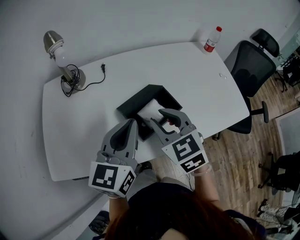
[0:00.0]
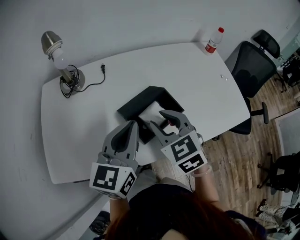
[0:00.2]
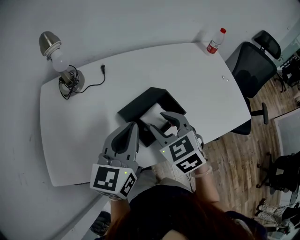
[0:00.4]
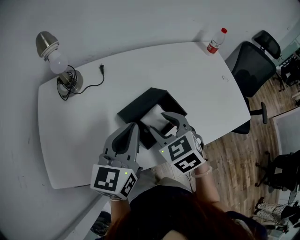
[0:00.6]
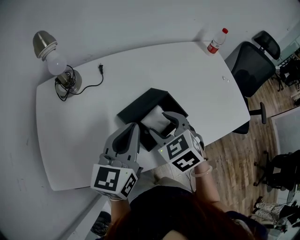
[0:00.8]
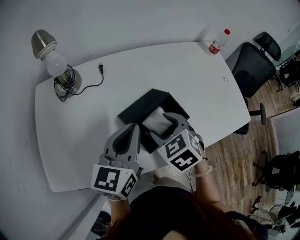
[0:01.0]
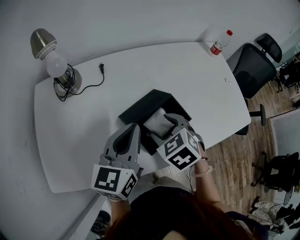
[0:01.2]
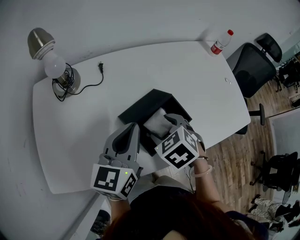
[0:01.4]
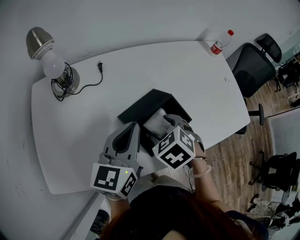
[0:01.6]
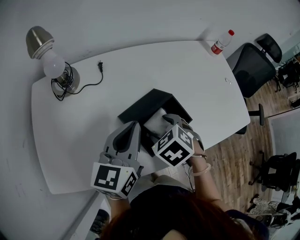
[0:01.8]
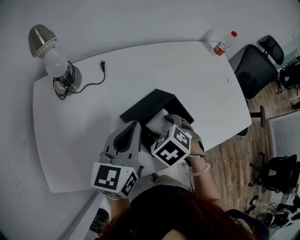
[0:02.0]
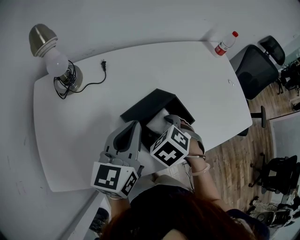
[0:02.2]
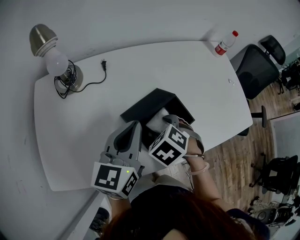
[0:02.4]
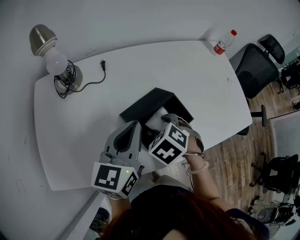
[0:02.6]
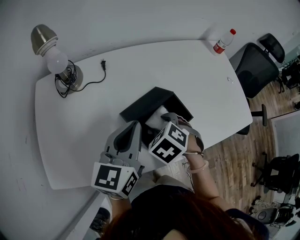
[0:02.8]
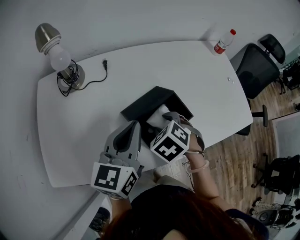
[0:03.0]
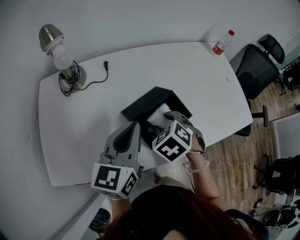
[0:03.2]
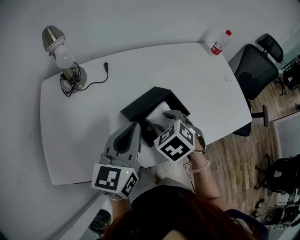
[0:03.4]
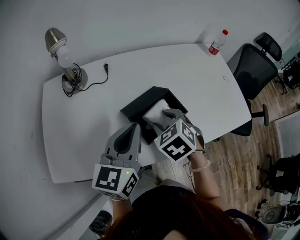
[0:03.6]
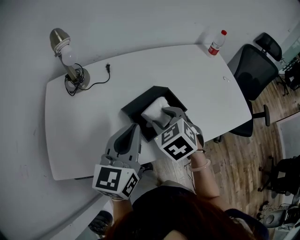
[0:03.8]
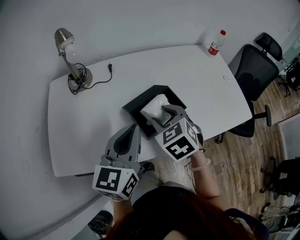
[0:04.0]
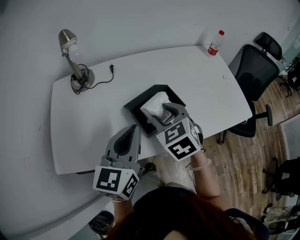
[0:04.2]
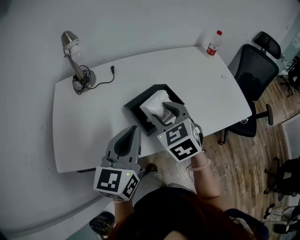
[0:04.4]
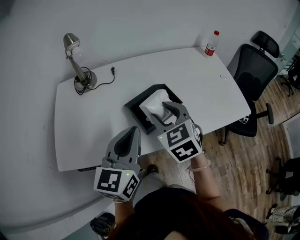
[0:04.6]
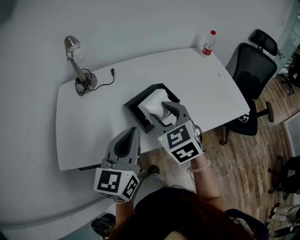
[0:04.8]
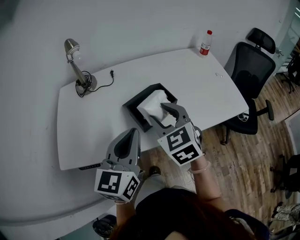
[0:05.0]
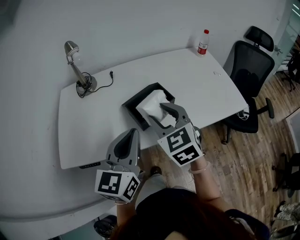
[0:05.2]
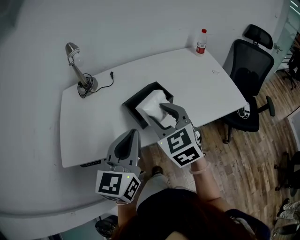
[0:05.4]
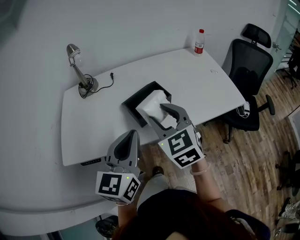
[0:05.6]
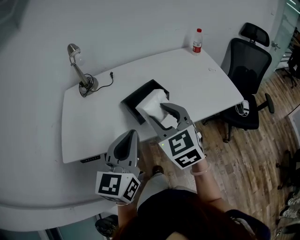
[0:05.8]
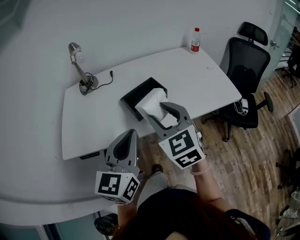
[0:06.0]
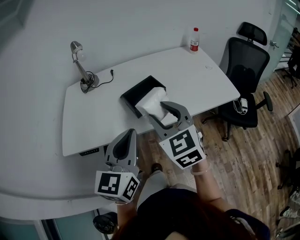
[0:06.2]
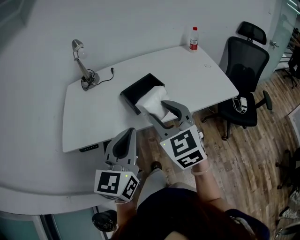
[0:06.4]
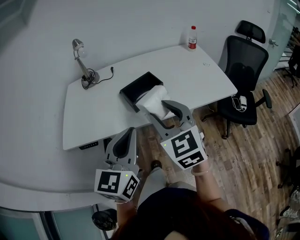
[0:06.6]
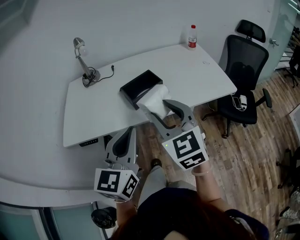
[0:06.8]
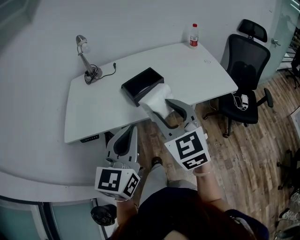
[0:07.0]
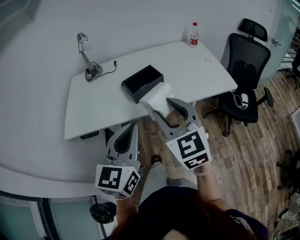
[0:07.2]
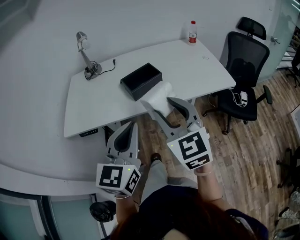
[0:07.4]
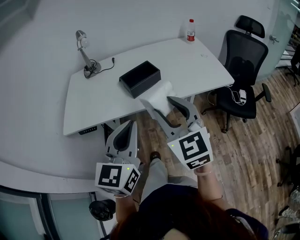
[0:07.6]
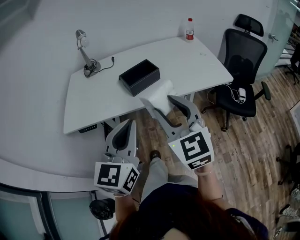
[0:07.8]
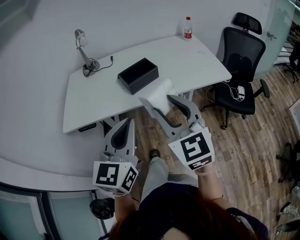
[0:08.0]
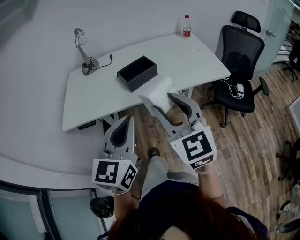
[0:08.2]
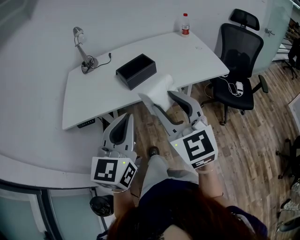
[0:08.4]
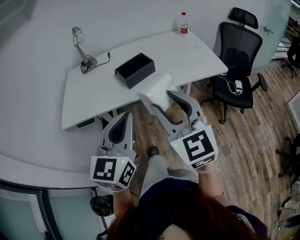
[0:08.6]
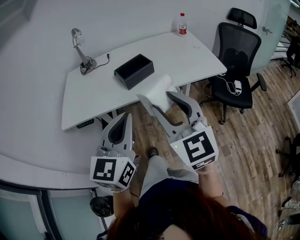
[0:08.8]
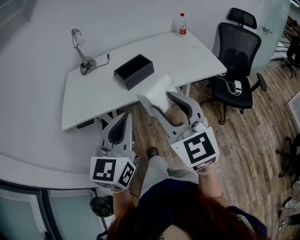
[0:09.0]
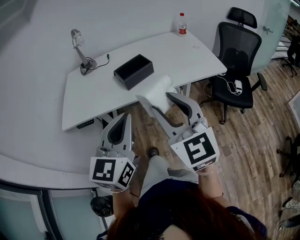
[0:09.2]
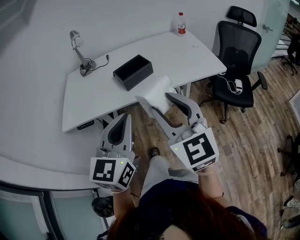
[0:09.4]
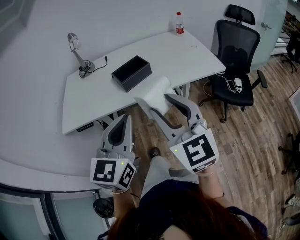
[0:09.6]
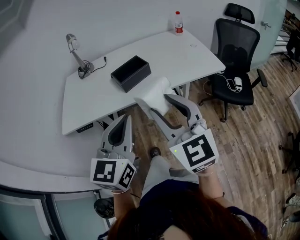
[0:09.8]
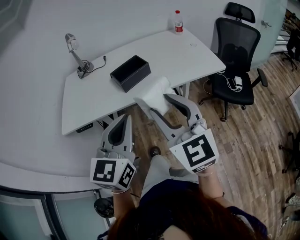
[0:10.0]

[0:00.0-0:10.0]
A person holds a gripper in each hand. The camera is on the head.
0:00.0 to 0:01.4: The right gripper moves some 25 cm downward and comes back, tips its fingers downward by some 30 degrees, and opens. Meanwhile the left gripper shifts roughly 5 cm forward, and goes downward and returns, some 25 cm each way.
0:01.4 to 0:02.8: The grippers stay close to where they were, moving slightly.
0:02.8 to 0:04.2: The right gripper shifts some 10 cm upward, and swivels approximately 30 degrees. Meanwhile the left gripper goes roughly 10 cm backward.
0:04.2 to 0:05.8: The right gripper heads backward and upward, covering roughly 15 cm, and rotates approximately 20 degrees. The left gripper heads backward, covering about 15 cm.
0:05.8 to 0:07.2: The grippers both shift backward by some 10 cm.
0:07.2 to 0:08.6: The right gripper goes some 10 cm backward, while the left gripper shifts some 5 cm backward.
0:08.6 to 0:10.0: The grippers make only small movements.

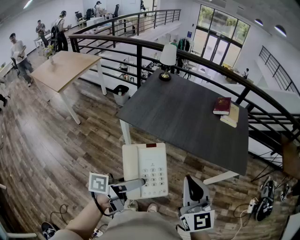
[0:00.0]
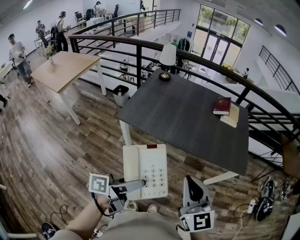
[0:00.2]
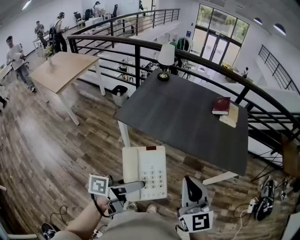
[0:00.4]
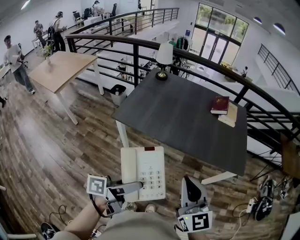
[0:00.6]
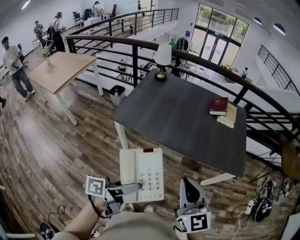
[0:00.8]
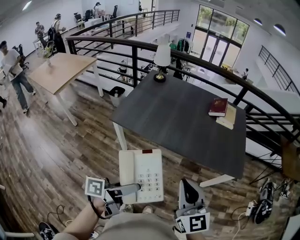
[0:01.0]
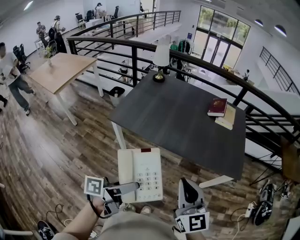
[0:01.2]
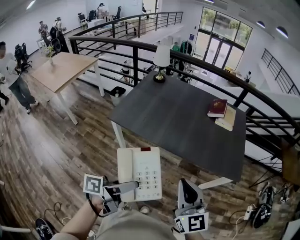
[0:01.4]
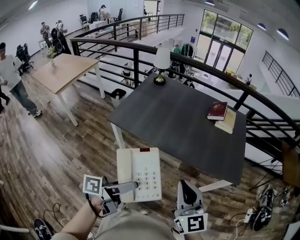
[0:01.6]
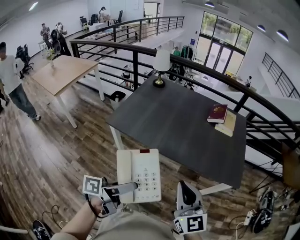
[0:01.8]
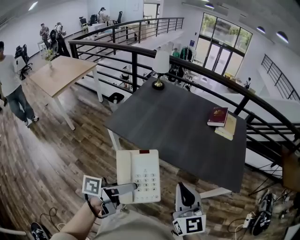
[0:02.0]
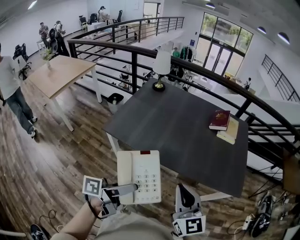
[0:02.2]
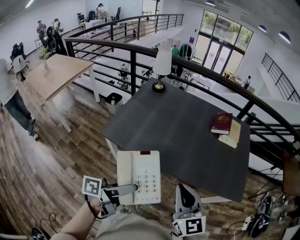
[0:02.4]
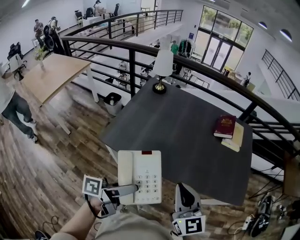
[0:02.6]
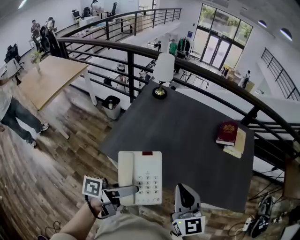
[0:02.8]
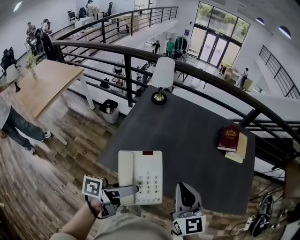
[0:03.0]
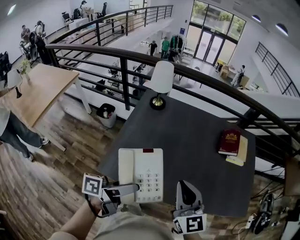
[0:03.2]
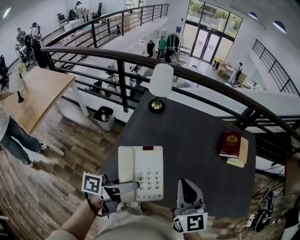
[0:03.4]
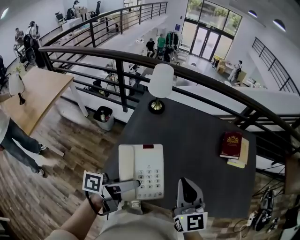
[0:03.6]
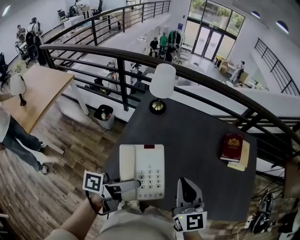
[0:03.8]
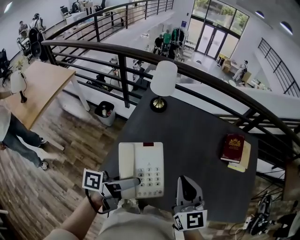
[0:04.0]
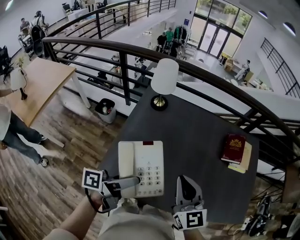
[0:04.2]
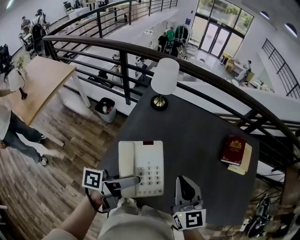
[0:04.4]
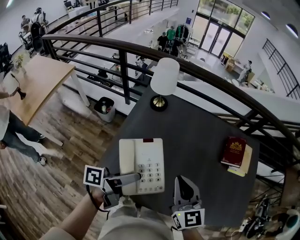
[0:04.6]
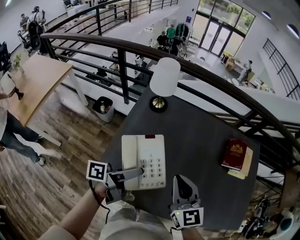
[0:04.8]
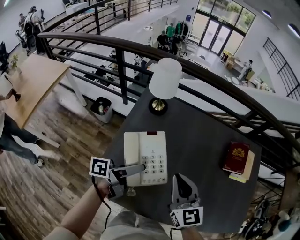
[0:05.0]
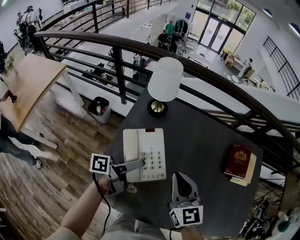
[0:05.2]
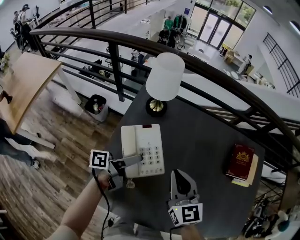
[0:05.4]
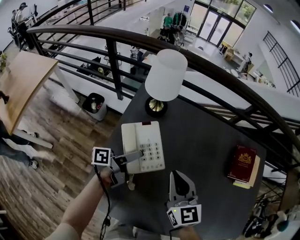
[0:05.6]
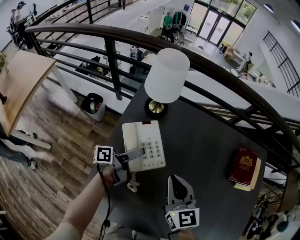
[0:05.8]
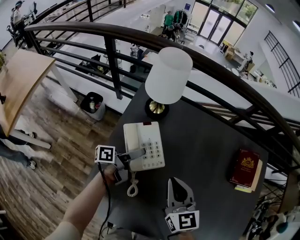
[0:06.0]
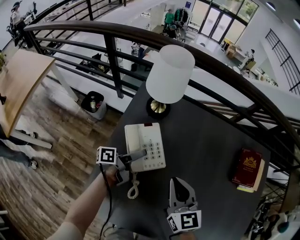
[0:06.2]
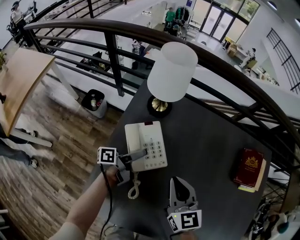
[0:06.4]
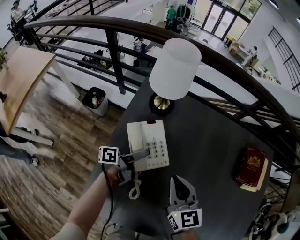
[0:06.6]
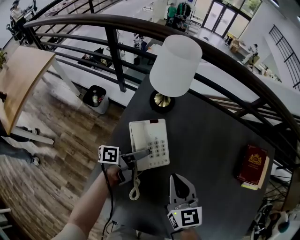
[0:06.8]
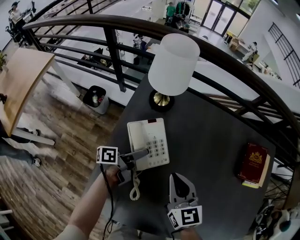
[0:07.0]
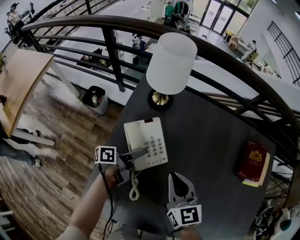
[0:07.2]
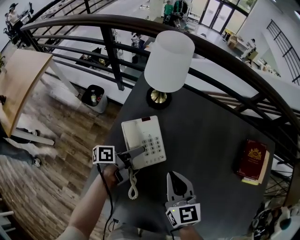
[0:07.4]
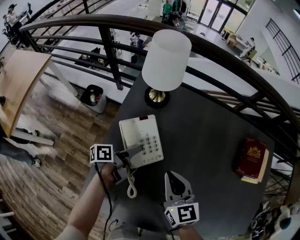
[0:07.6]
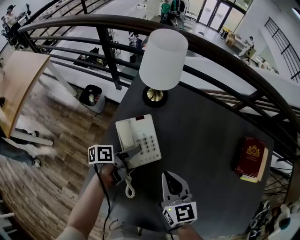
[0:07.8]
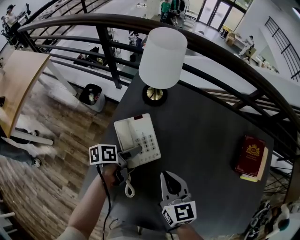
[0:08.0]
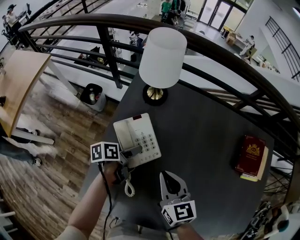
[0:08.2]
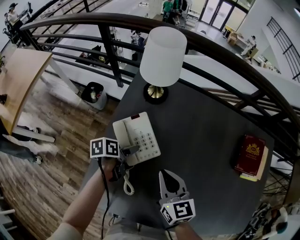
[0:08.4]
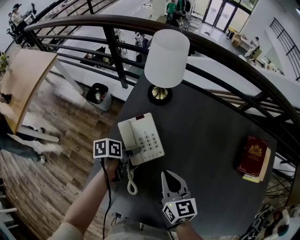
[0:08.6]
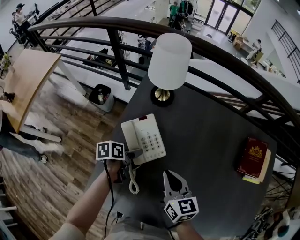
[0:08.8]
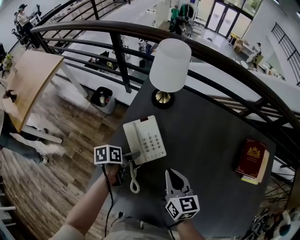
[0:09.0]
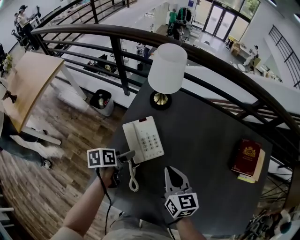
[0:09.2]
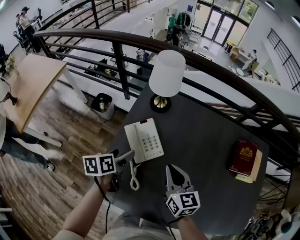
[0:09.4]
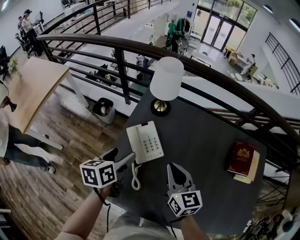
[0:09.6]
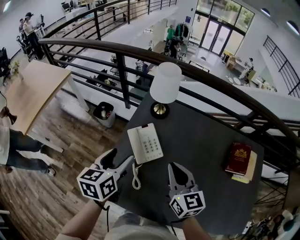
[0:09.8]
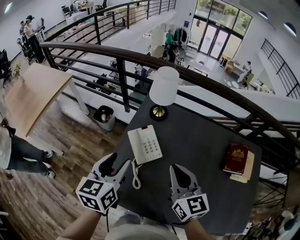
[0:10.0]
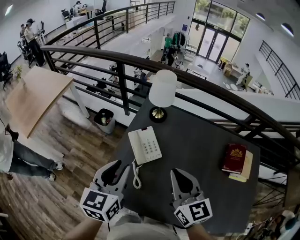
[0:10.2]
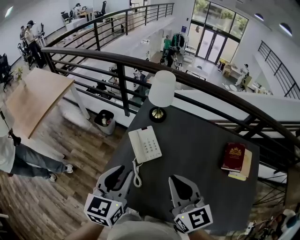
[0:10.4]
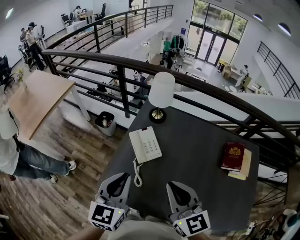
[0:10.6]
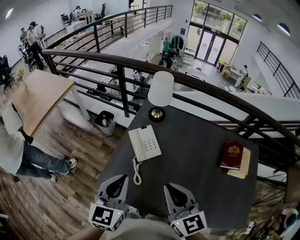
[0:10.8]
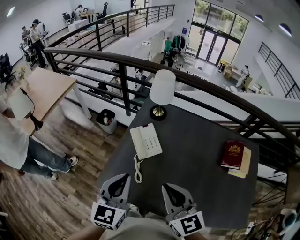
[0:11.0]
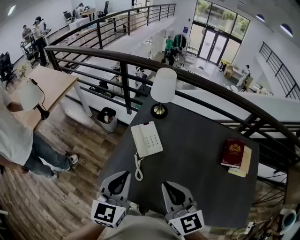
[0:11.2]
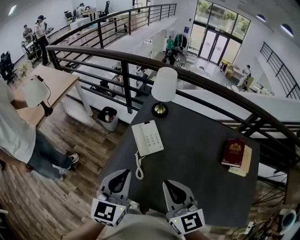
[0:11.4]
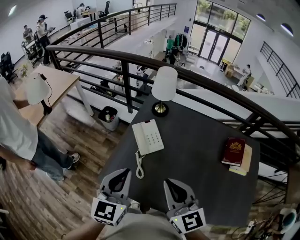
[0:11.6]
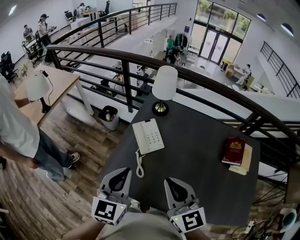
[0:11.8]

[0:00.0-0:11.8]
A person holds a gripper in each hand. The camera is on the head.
0:00.0 to 0:01.4: Both grippers travel together to the right, about 10 cm.
0:01.4 to 0:03.0: Both grippers move forward and to the left, some 35 cm.
0:03.0 to 0:04.4: The two grippers go approximately 15 cm forward and to the left.
0:04.4 to 0:06.0: The left gripper is displaced forward and downward by approximately 40 cm. The right gripper moves forward, downward and to the left, approximately 25 cm.
0:06.0 to 0:07.4: There are only small adjustments of the grippers.
0:07.4 to 0:08.8: The left gripper moves roughly 5 cm, and angles its fingers downward, by approximately 30 degrees.
0:08.8 to 0:10.4: The two grippers go roughly 35 cm upward and backward. The right gripper rotates some 30 degrees, while the left gripper tilts its fingers about 30 degrees upward, and closes up.
0:10.4 to 0:11.8: Both grippers move backward, some 5 cm.

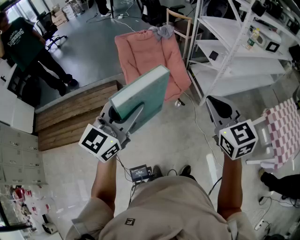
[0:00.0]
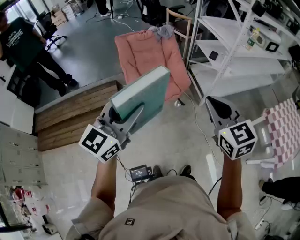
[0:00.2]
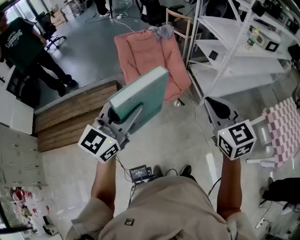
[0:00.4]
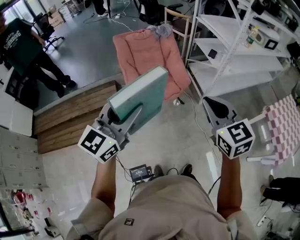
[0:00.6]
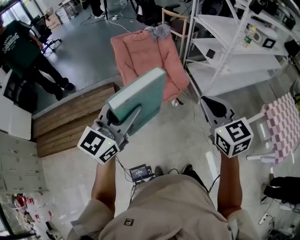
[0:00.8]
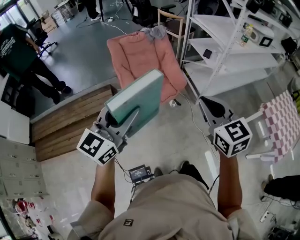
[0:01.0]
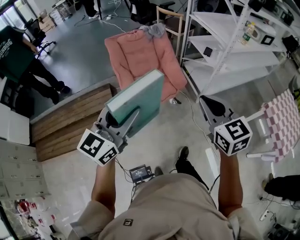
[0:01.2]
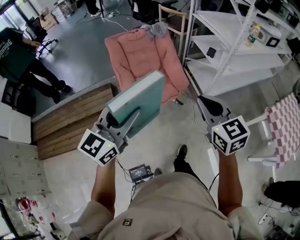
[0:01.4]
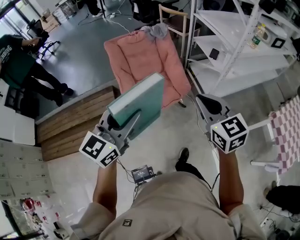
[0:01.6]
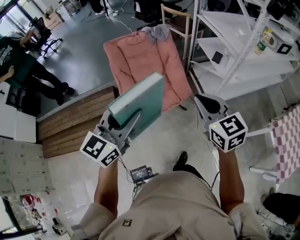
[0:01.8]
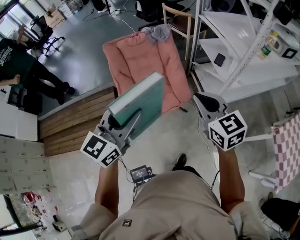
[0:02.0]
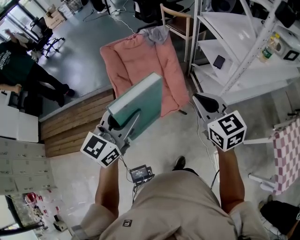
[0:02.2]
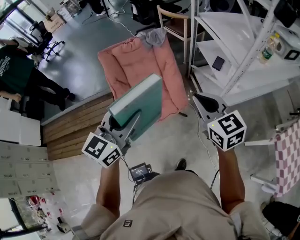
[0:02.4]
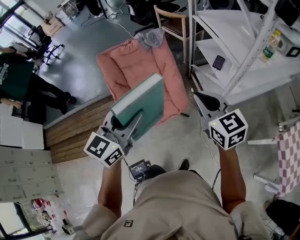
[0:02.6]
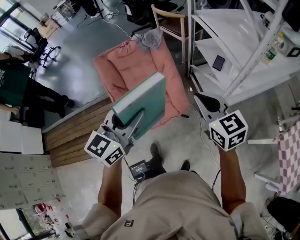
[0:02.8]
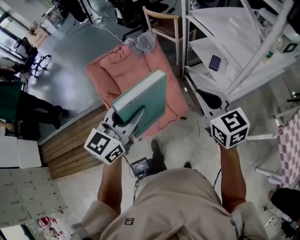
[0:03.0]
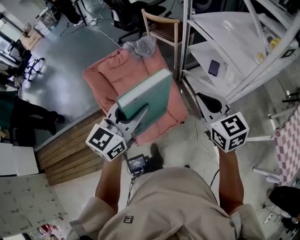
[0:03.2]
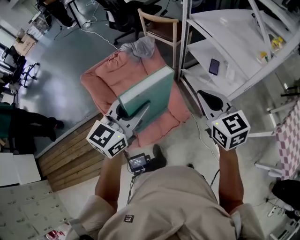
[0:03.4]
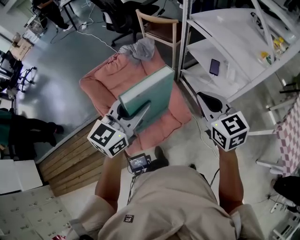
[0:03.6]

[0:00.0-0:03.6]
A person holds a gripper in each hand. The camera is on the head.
0:00.0 to 0:01.8: The grippers both shift forward by some 25 cm.
0:01.8 to 0:03.6: The two grippers go some 35 cm forward.
